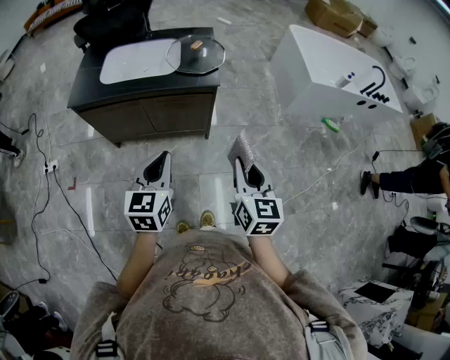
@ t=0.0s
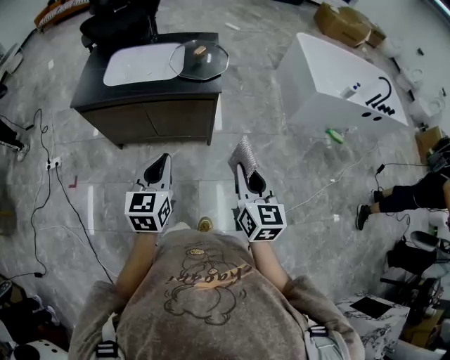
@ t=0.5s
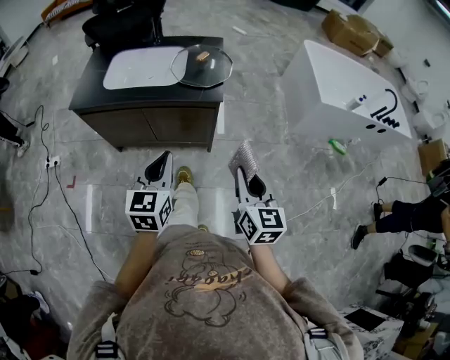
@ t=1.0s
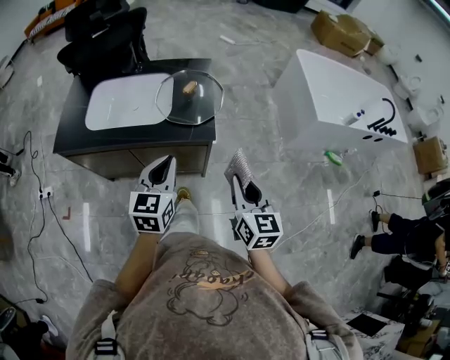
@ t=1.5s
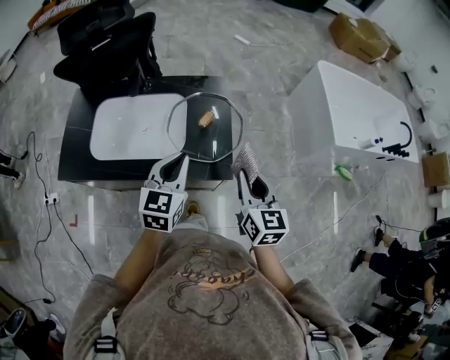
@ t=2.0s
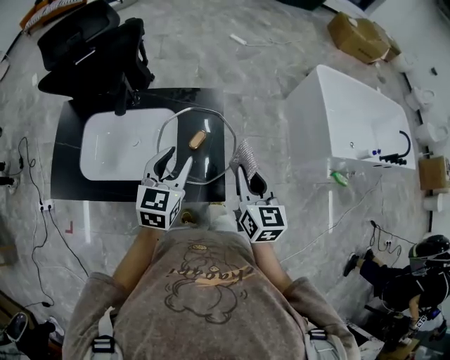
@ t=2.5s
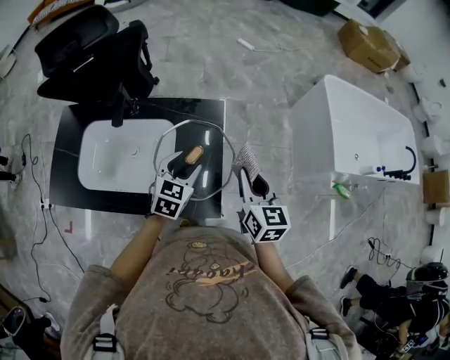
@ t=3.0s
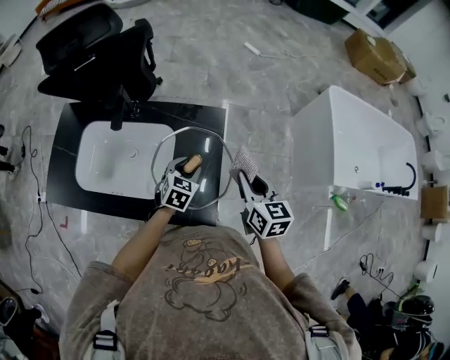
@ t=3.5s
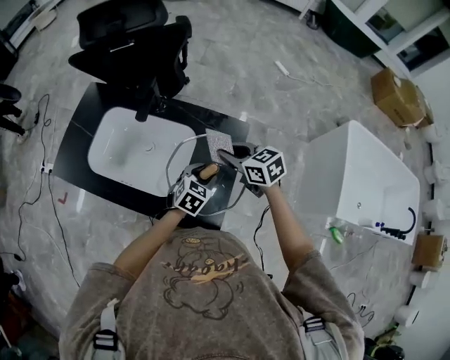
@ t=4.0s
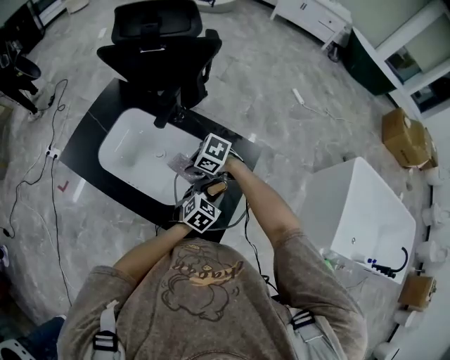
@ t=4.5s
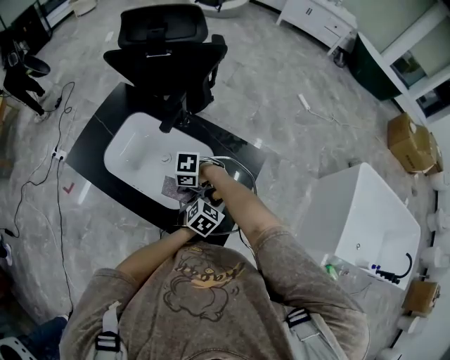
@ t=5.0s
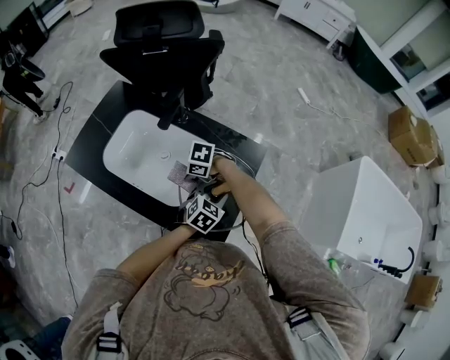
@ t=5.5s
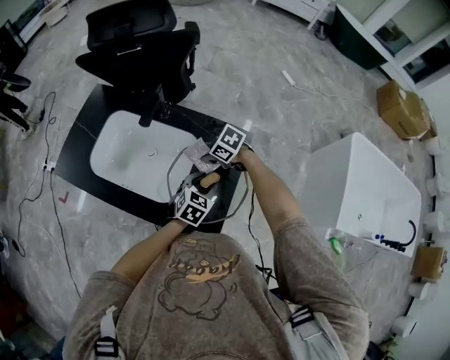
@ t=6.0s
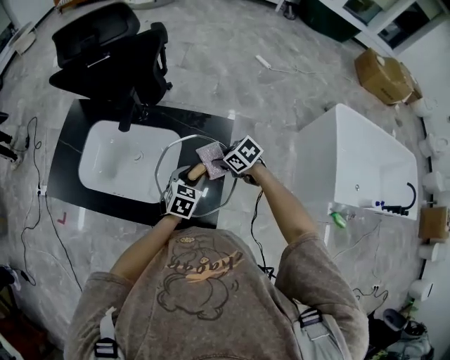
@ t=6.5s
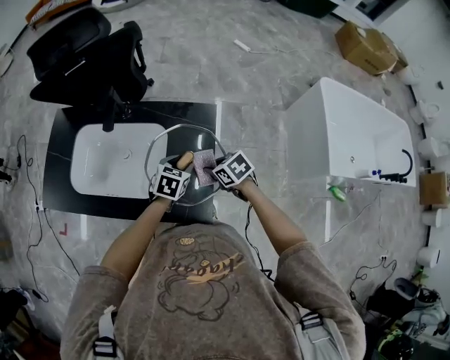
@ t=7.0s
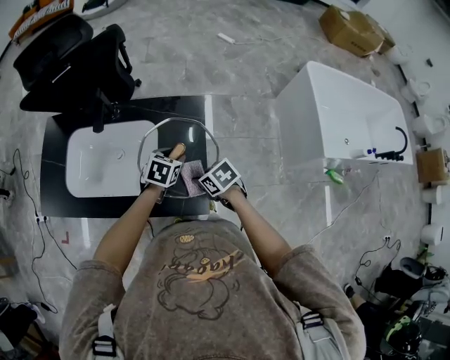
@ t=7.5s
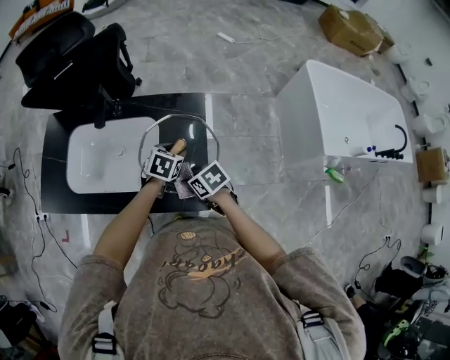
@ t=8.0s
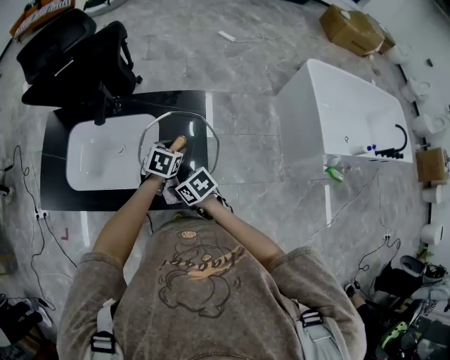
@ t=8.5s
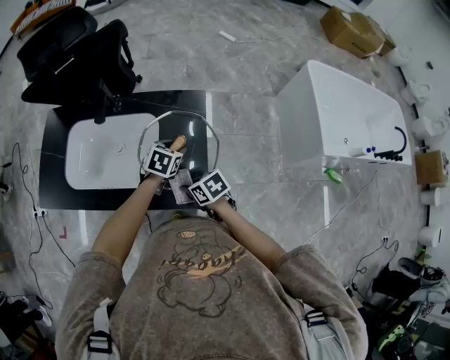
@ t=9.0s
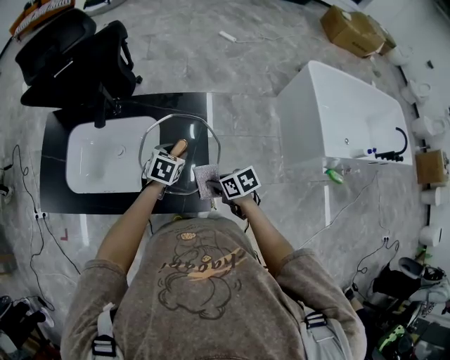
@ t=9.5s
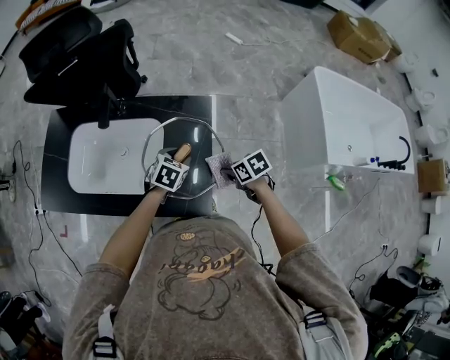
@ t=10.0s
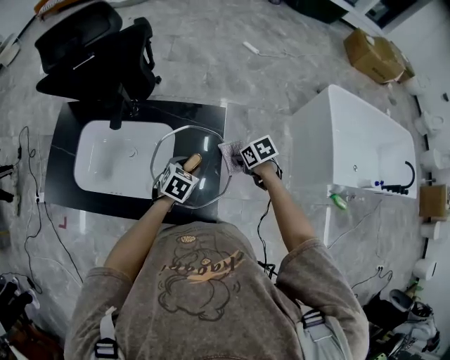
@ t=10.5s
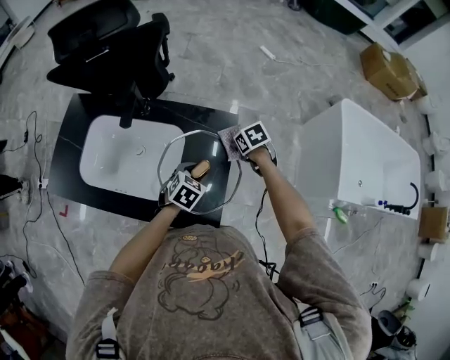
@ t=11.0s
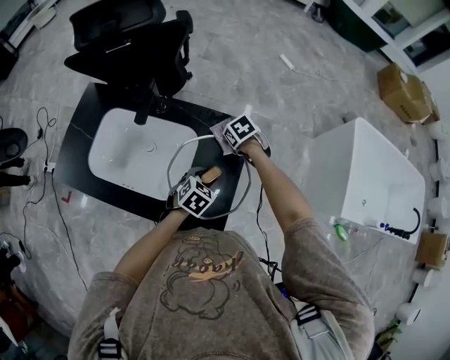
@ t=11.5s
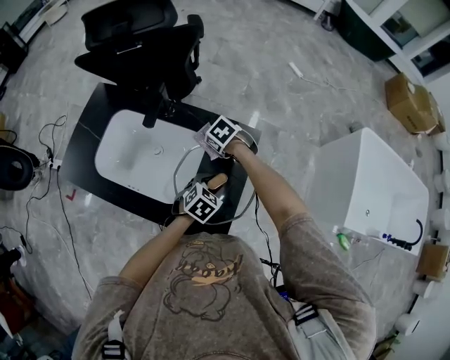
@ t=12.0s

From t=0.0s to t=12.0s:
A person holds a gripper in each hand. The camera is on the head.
From t=0.0s to t=2.0s: Both grippers are carried forward, roughly 40 cm.
From t=2.0s to t=4.0s: The right gripper shifts by some 30 cm, and rotates some 60 degrees. Meanwhile the left gripper changes place by roughly 30 cm, turns by roughly 20 degrees, and opens its fingers.
From t=4.0s to t=6.0s: The right gripper travels downward by some 10 cm, and turns by approximately 40 degrees.
From t=6.0s to t=8.0s: The right gripper shifts by about 20 cm, and turns by about 50 degrees.
From t=8.0s to t=10.0s: The right gripper goes about 15 cm to the right.
From t=10.0s to t=12.0s: The right gripper moves forward and to the left, about 30 cm, and twists approximately 40 degrees counterclockwise, seen from behind.

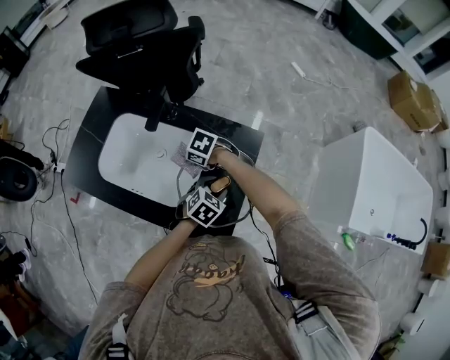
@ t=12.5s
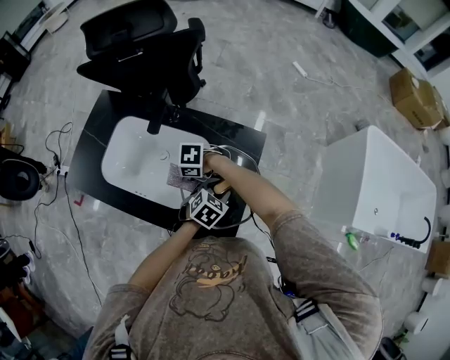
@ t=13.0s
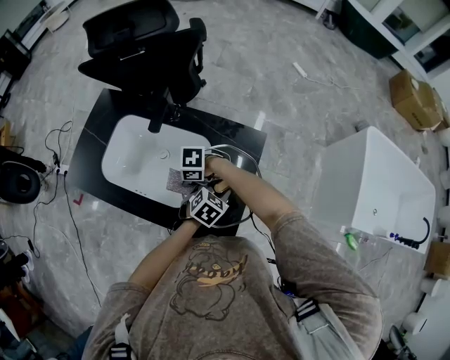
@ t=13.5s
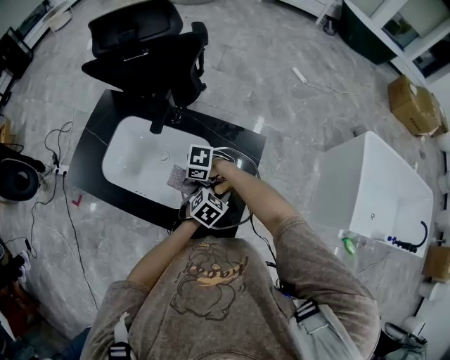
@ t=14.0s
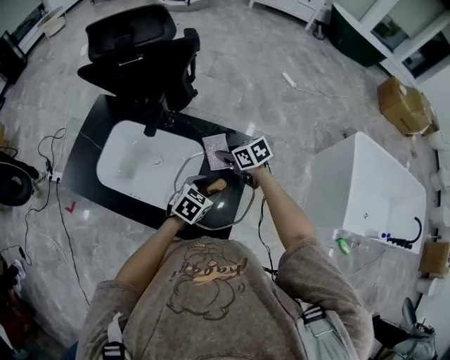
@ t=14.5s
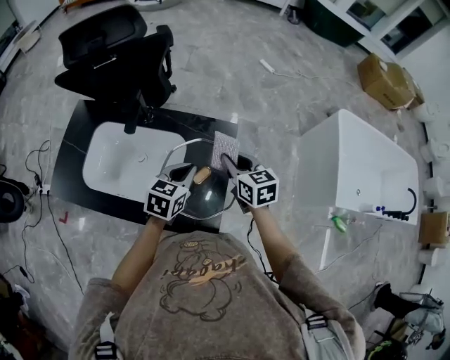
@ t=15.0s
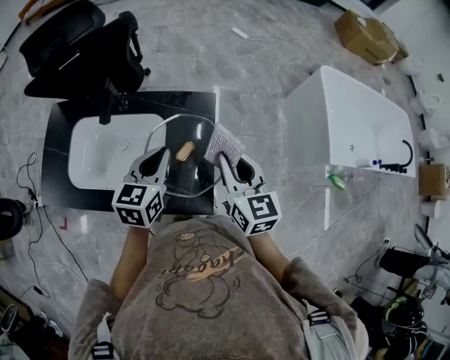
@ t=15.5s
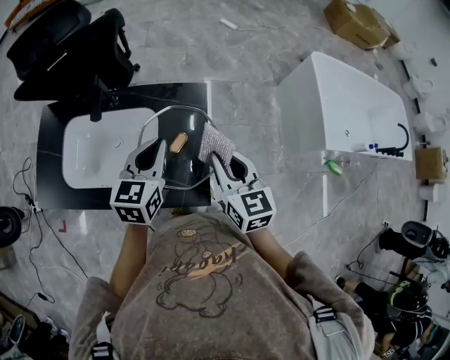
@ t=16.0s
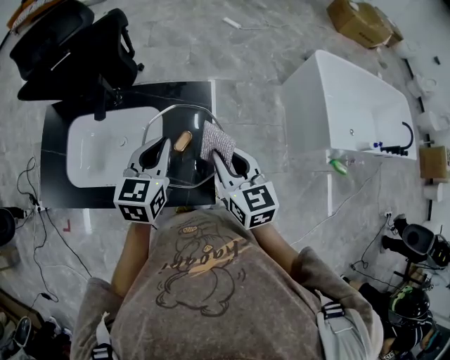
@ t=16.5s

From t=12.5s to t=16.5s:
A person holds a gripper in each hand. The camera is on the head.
From t=12.5s to t=14.5s: The right gripper shifts by about 15 cm, and rotates approximately 40 degrees.
From t=14.5s to t=16.5s: The right gripper heads backward, upward and to the right, covering roughly 25 cm, and changes its angle by roughly 50 degrees. Meanwhile the left gripper moves upward, roughly 15 cm, changes its angle by roughly 20 degrees, and closes its fingers.

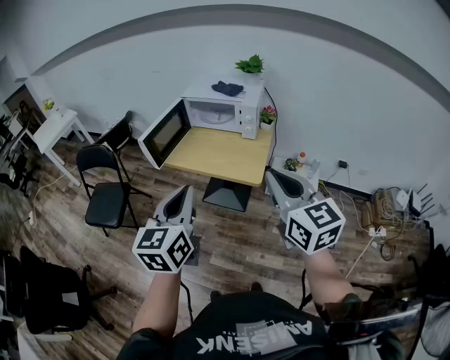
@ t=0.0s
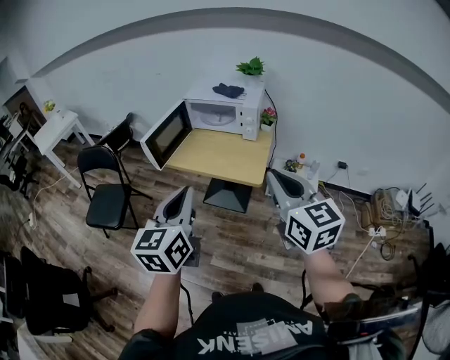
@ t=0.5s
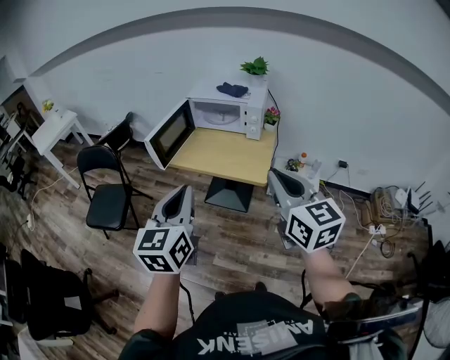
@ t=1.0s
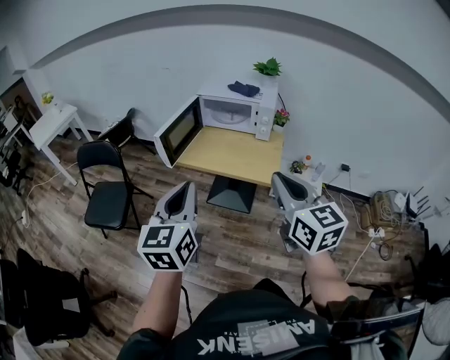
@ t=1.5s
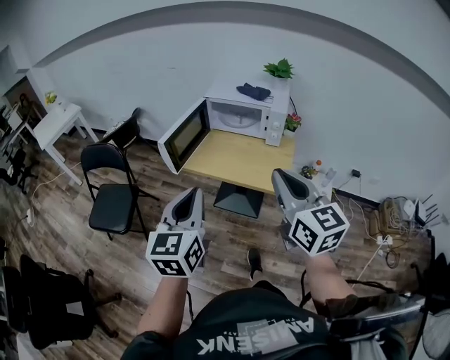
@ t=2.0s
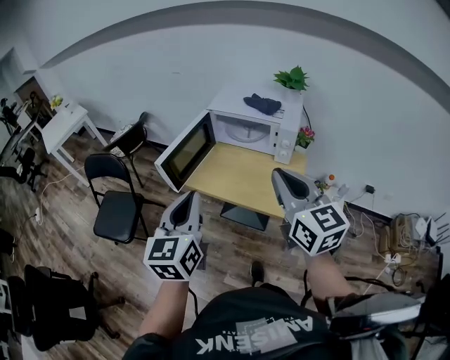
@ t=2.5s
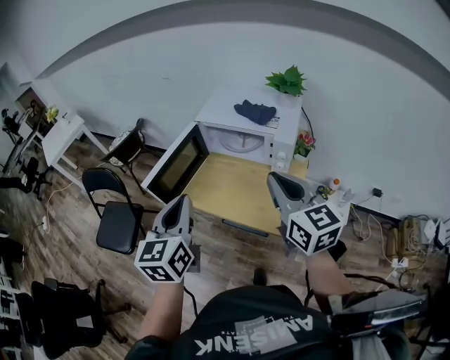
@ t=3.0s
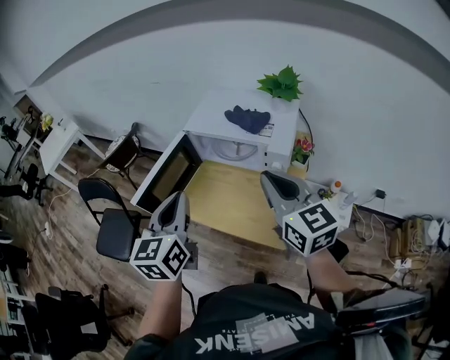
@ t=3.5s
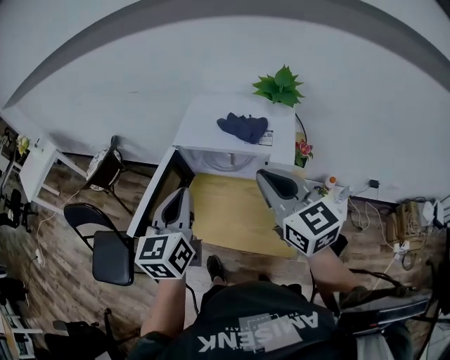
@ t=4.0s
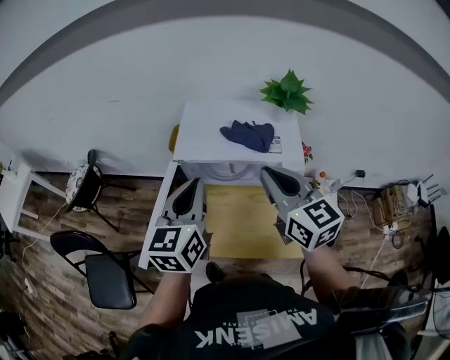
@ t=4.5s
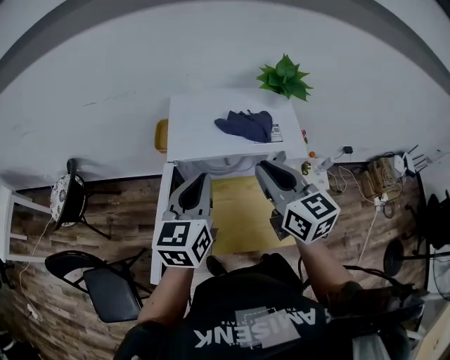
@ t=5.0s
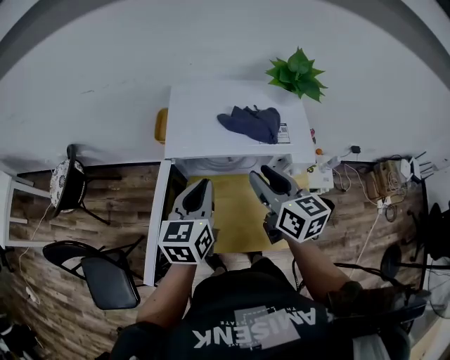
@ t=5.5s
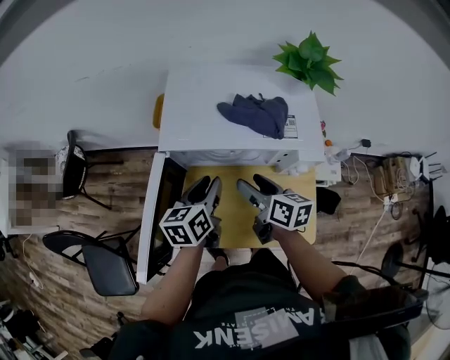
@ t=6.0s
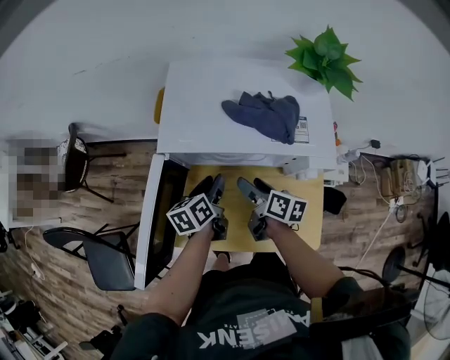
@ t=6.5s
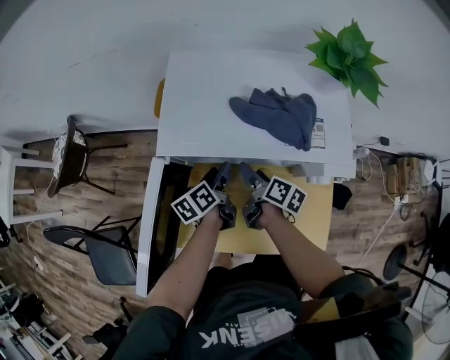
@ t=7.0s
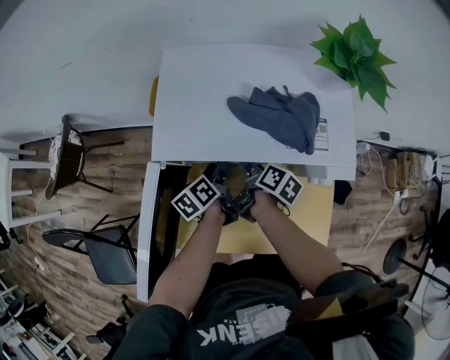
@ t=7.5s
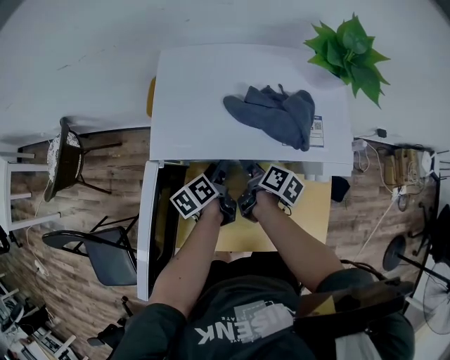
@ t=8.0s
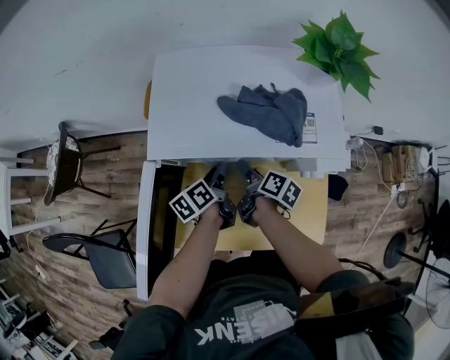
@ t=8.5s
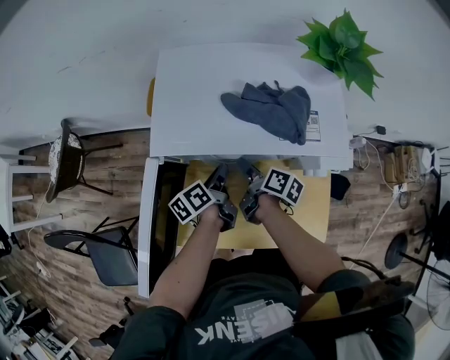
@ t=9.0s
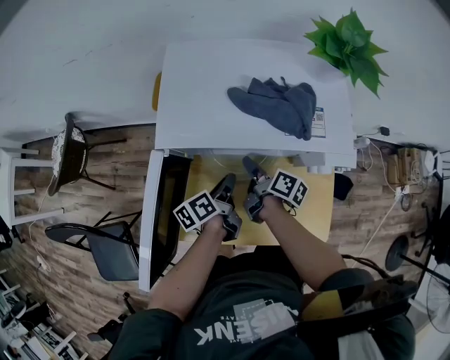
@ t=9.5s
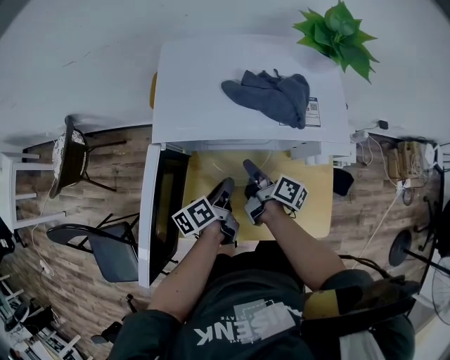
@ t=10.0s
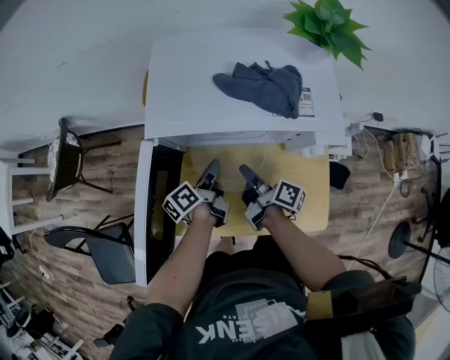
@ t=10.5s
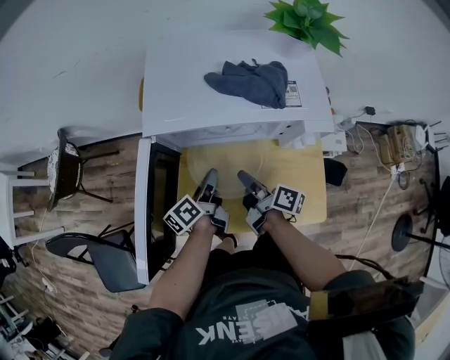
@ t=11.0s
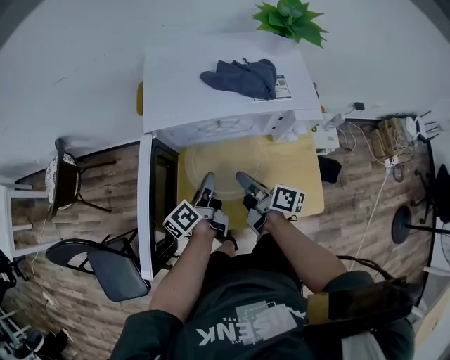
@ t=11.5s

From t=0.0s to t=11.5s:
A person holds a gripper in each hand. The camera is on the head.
From t=0.0s to t=2.0s: The two grippers go approximately 10 cm to the left and forward.
From t=2.0s to t=4.0s: The two grippers go some 35 cm forward.
From t=4.0s to t=6.0s: Both grippers move downward and forward, roughly 25 cm. The left gripper rotates about 30 degrees, and opens, while the right gripper twists some 50 degrees clockwise, seen from behind, and opens.
From t=6.0s to t=7.5s: Both grippers move downward and forward, roughly 15 cm. The right gripper rotates about 40 degrees. The left gripper swivels some 30 degrees, and opens up.
From t=7.5s to t=9.5s: The left gripper is displaced backward by approximately 10 cm, and closes; the right gripper closes up.
From t=9.5s to t=11.5s: The left gripper is displaced backward by about 5 cm. Meanwhile the right gripper goes roughly 10 cm backward.
